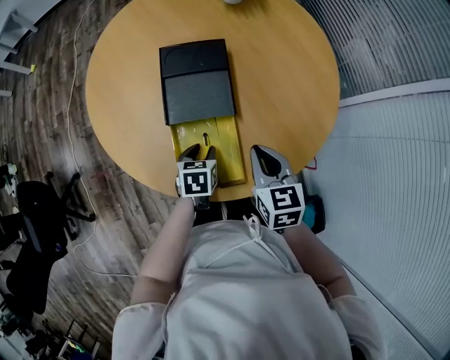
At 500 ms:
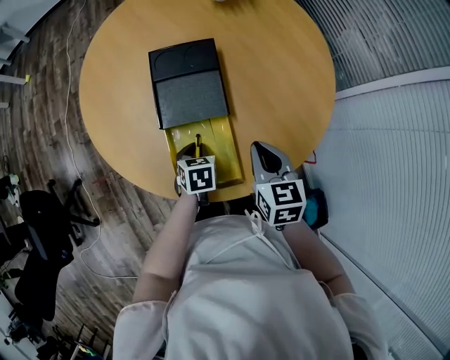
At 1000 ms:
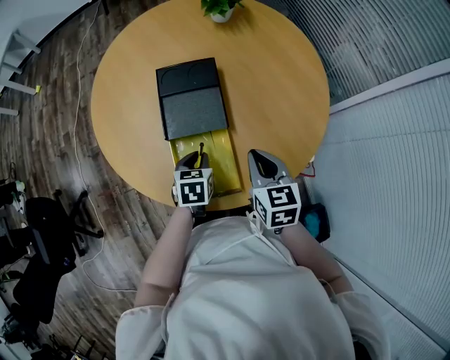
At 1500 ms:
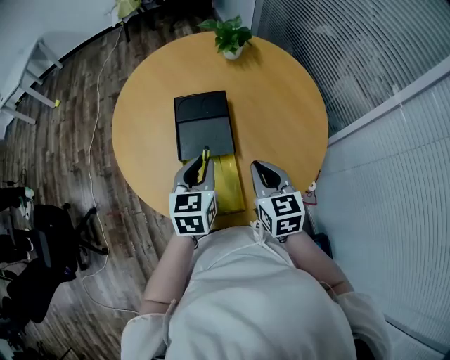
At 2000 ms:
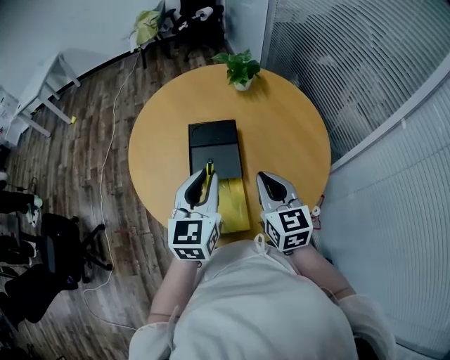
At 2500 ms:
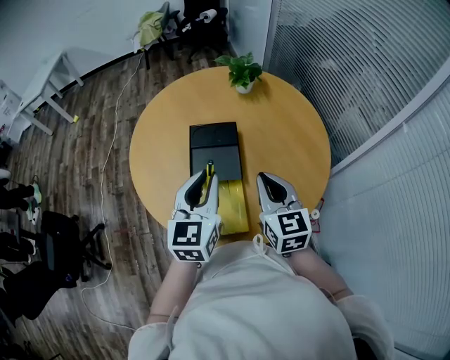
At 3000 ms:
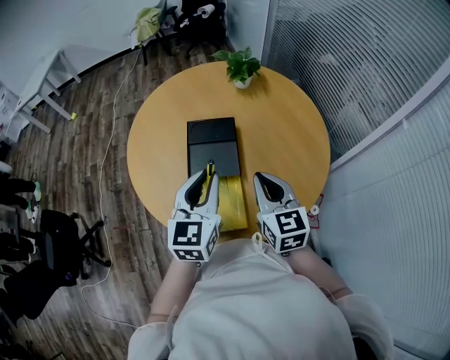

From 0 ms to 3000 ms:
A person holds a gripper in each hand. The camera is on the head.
From 0 ms to 1500 ms: The left gripper is displaced upward by roughly 25 cm, and changes its angle by about 30 degrees; the right gripper travels upward by some 10 cm.
From 1500 ms to 3000 ms: Both grippers travel together upward, roughly 10 cm.

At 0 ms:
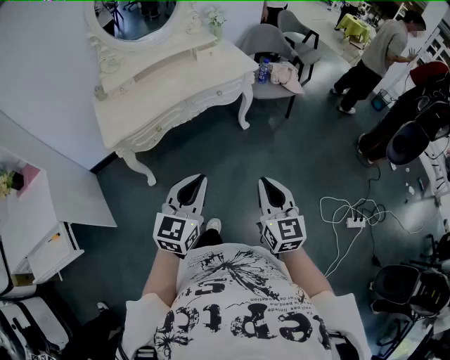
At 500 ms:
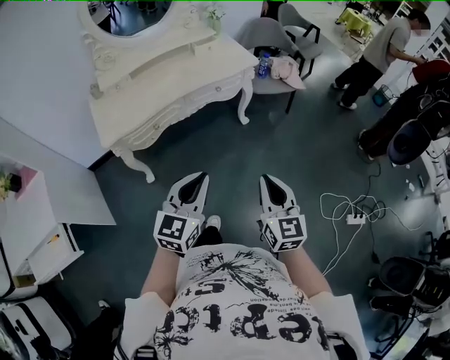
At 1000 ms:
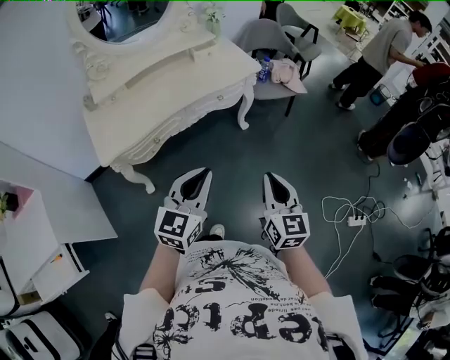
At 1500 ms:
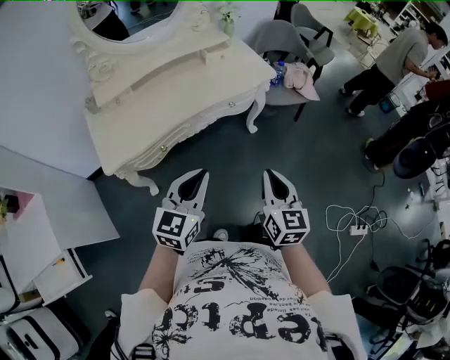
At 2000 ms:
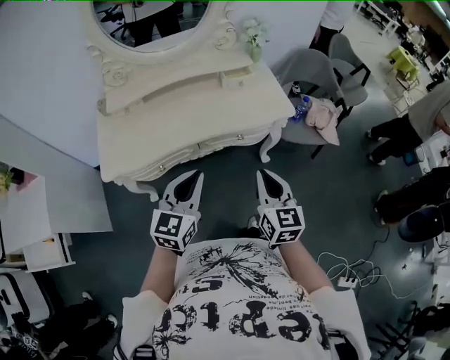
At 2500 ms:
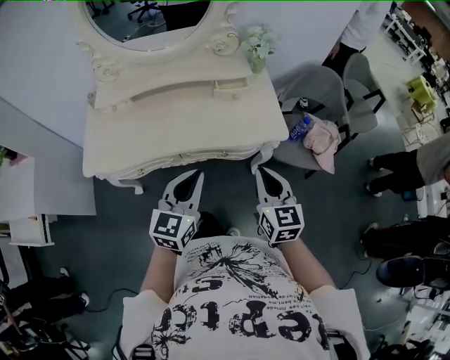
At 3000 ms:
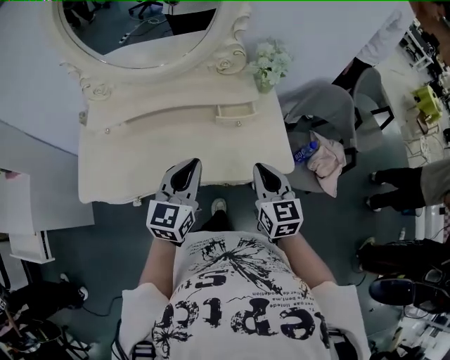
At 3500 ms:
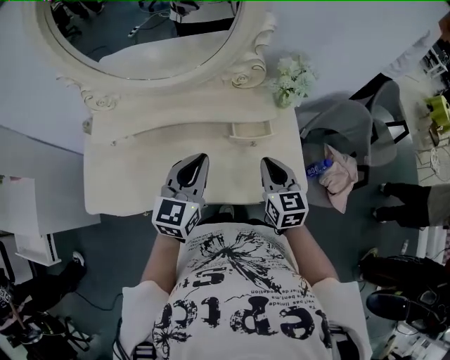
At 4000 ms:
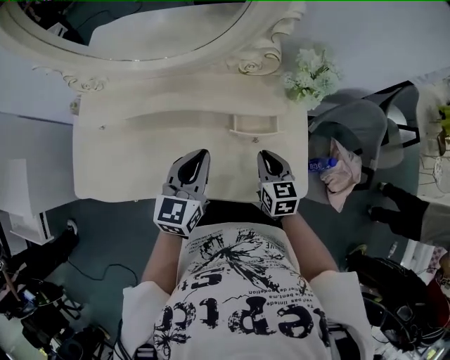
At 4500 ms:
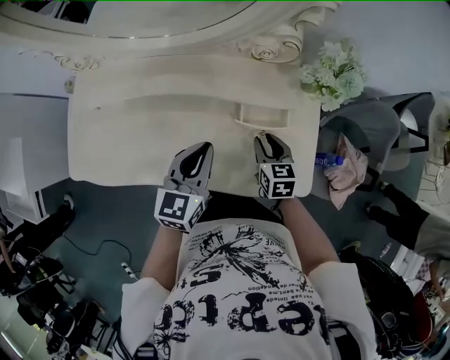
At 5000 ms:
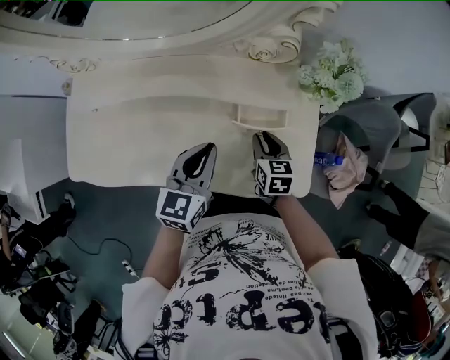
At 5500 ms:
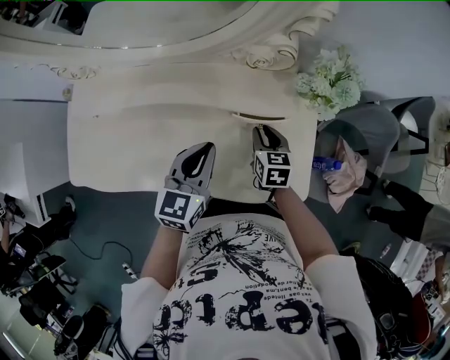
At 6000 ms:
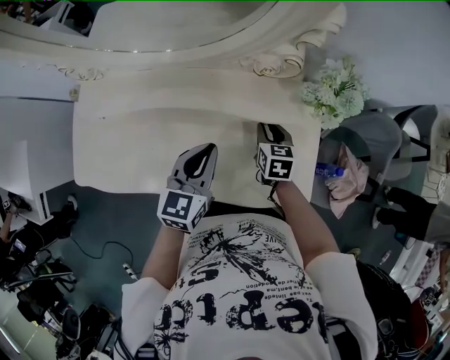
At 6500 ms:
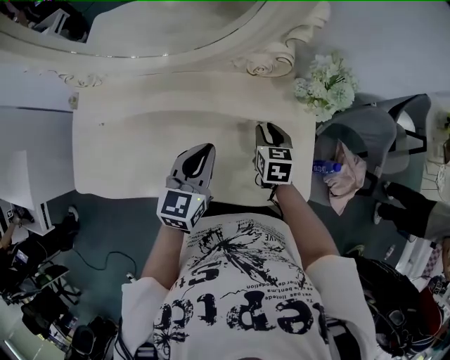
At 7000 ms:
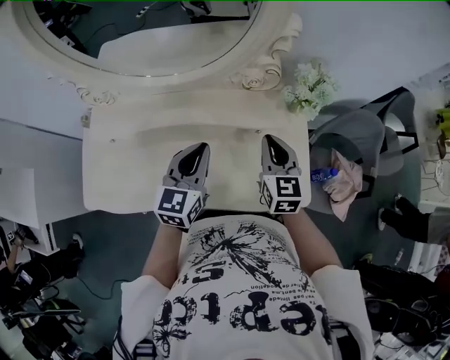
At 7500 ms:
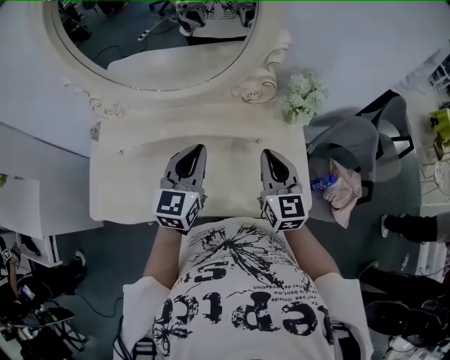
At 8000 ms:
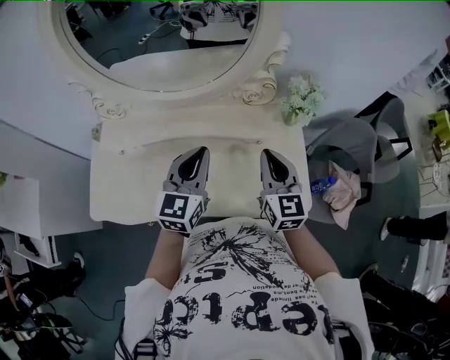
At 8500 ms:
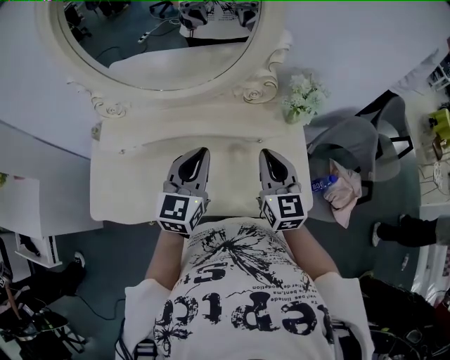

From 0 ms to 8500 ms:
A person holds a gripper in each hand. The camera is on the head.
From 0 ms to 2000 ms: The grippers both shift forward by some 35 cm.
From 2000 ms to 4000 ms: The pair of grippers is taken forward, about 40 cm. The left gripper rotates some 20 degrees, while the right gripper changes its angle by roughly 30 degrees.
From 4000 ms to 6500 ms: The right gripper is displaced forward by roughly 10 cm, and opens its fingers.
From 6500 ms to 8500 ms: The left gripper shifts roughly 10 cm upward. The right gripper heads upward and backward, covering approximately 25 cm, points its fingers approximately 30 degrees further upward, and closes up.

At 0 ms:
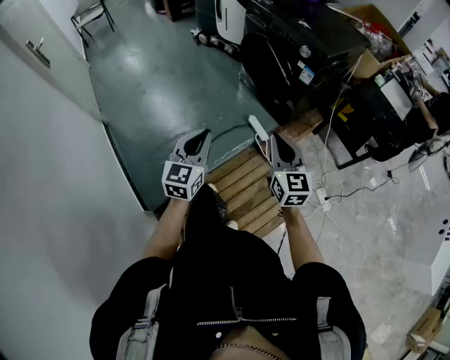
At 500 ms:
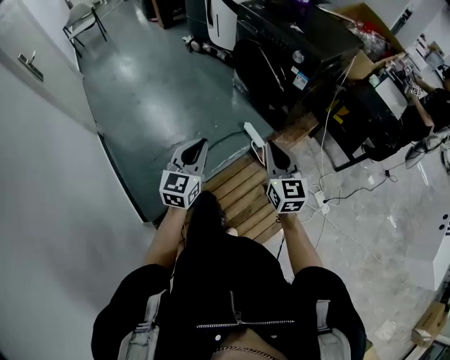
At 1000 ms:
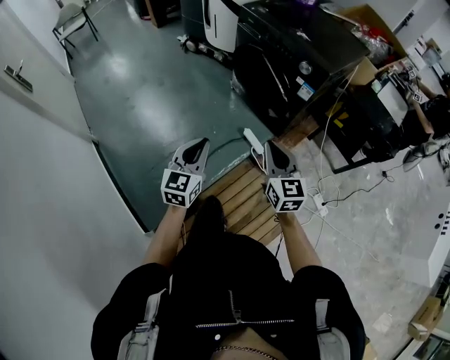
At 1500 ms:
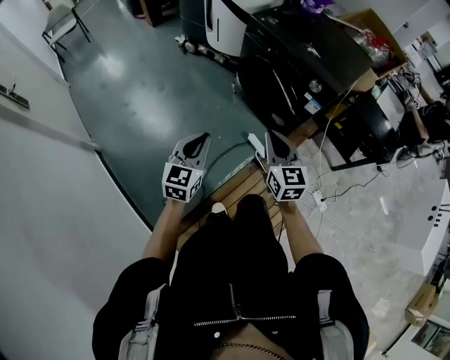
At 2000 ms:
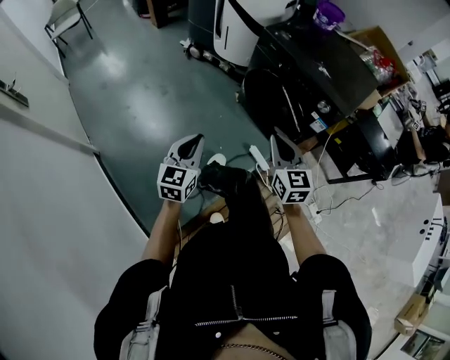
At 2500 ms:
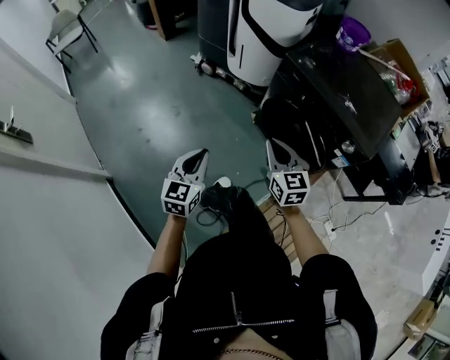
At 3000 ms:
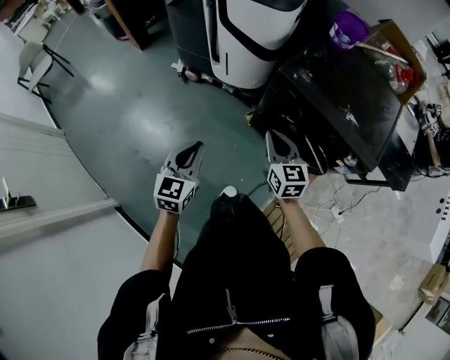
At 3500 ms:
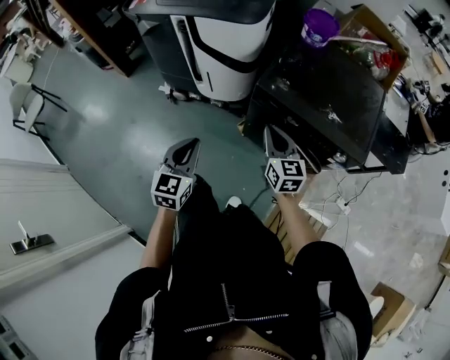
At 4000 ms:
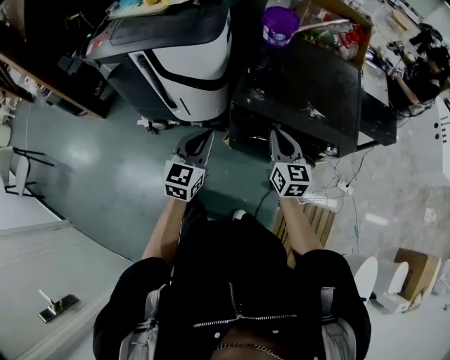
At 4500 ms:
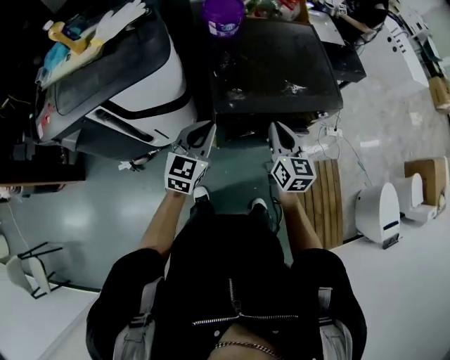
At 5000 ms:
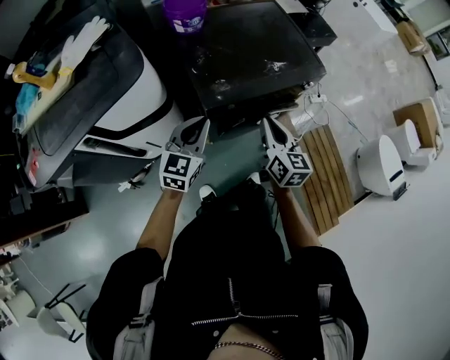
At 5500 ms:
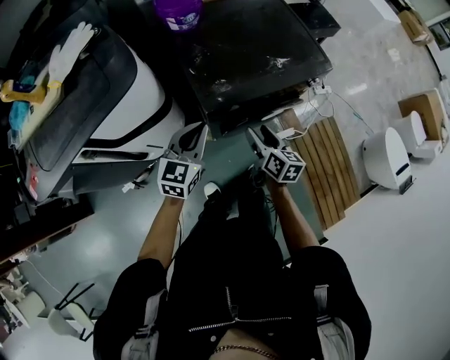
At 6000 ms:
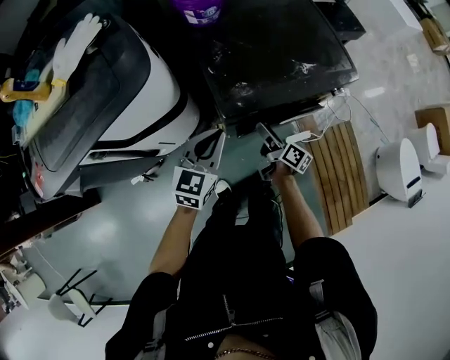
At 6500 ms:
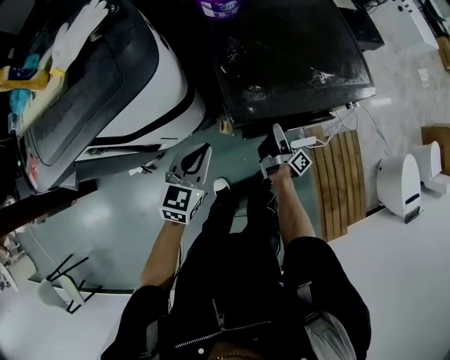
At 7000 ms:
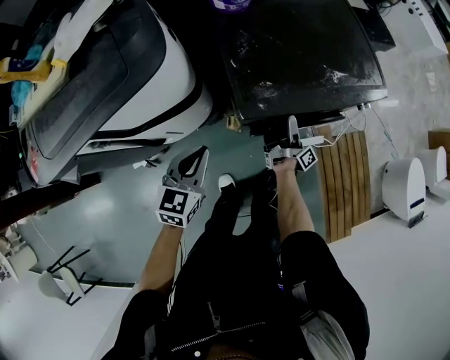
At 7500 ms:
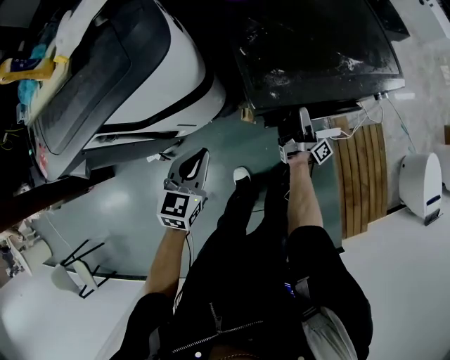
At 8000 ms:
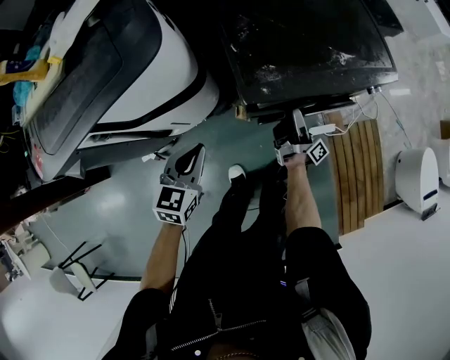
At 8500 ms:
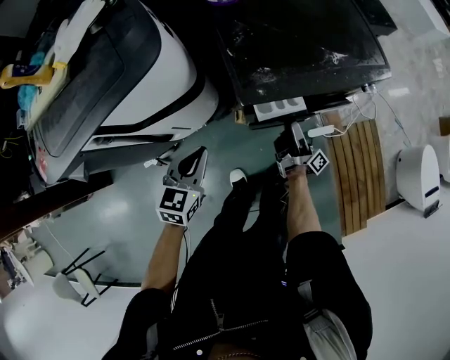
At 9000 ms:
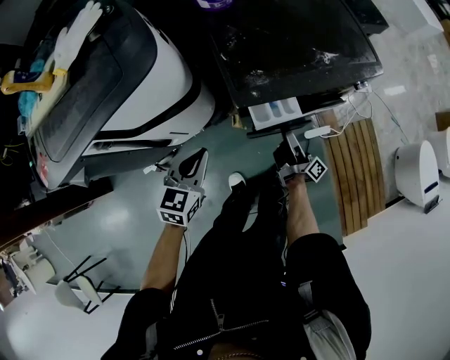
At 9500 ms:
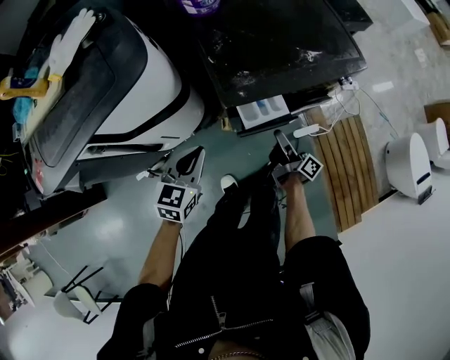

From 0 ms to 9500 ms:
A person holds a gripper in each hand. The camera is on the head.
From 0 ms to 2000 ms: Both grippers travel together forward and to the left, about 30 cm.
From 2000 ms to 4000 ms: The pair of grippers is taken some 50 cm. The right gripper changes its angle by about 40 degrees. Meanwhile the left gripper swivels approximately 40 degrees.
From 4000 ms to 5500 ms: The right gripper goes approximately 10 cm downward, rotates some 50 degrees, and opens up. The left gripper changes place by some 15 cm, and turns by approximately 40 degrees.
From 5500 ms to 7500 ms: The right gripper heads downward and forward, covering roughly 15 cm, and points its fingers some 40 degrees further upward; the left gripper is displaced to the left, downward and backward by some 15 cm.
From 7500 ms to 9500 ms: The right gripper is displaced backward by about 10 cm, swivels approximately 20 degrees, and closes.

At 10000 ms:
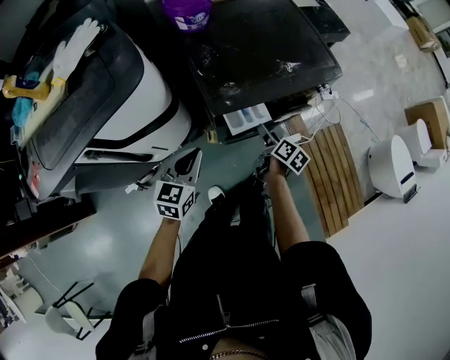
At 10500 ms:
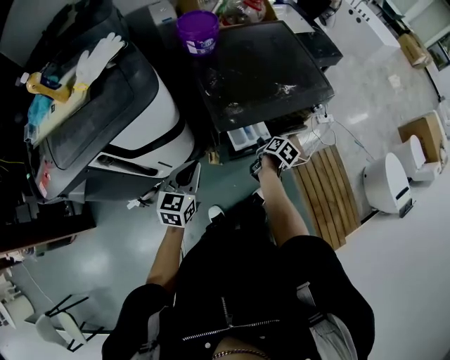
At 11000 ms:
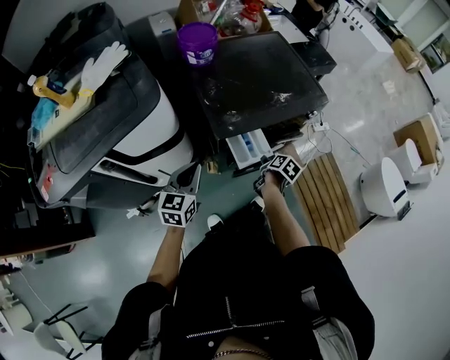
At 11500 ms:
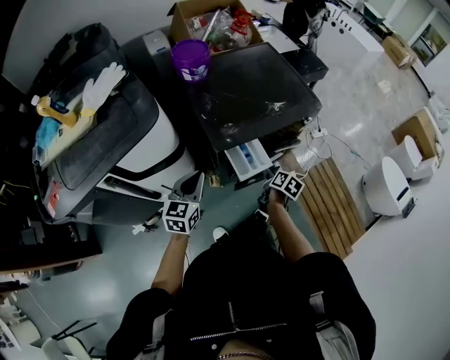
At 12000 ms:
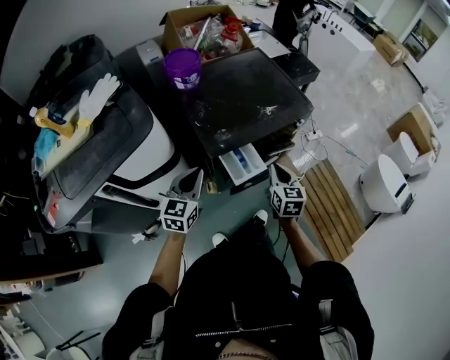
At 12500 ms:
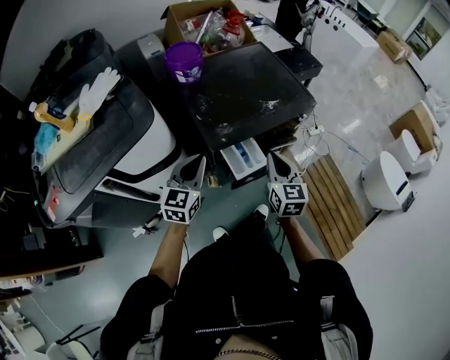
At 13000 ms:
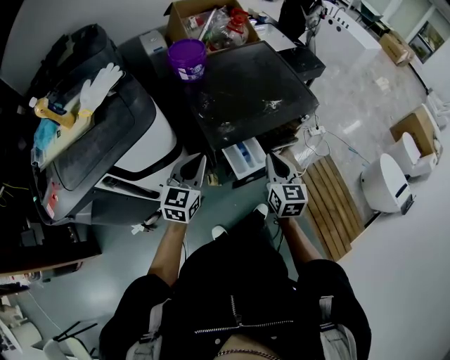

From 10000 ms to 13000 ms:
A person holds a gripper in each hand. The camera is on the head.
From 10000 ms to 11500 ms: The right gripper shifts by some 5 cm, and closes its fingers.
From 11500 ms to 13000 ms: The right gripper goes roughly 20 cm upward, and twists some 50 degrees counterclockwise, seen from behind. The left gripper moves upward, roughly 5 cm.

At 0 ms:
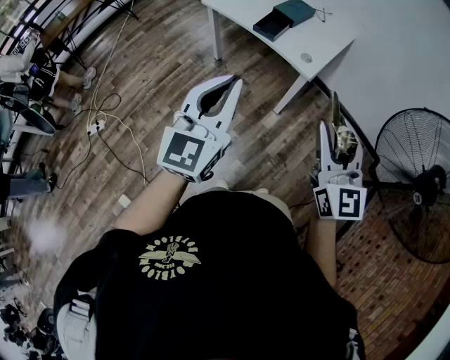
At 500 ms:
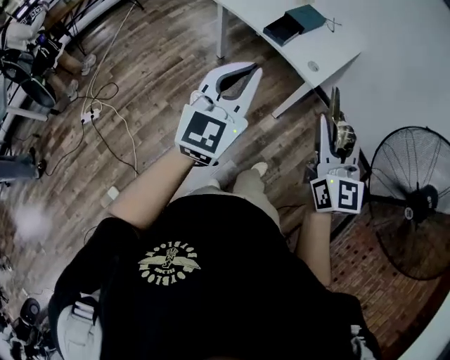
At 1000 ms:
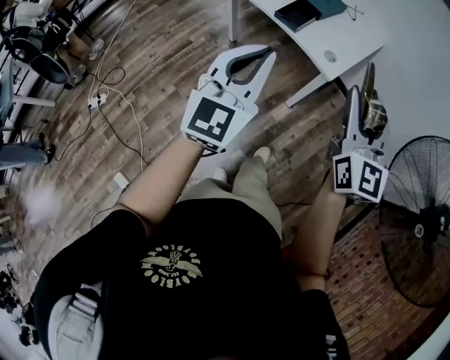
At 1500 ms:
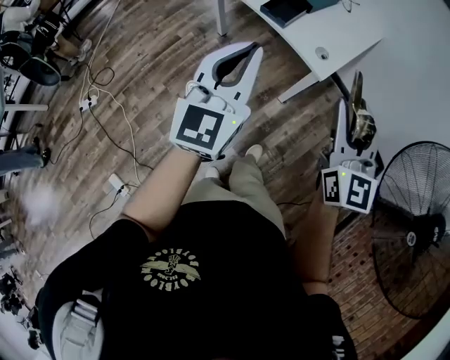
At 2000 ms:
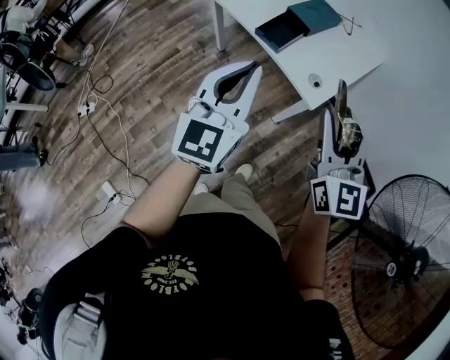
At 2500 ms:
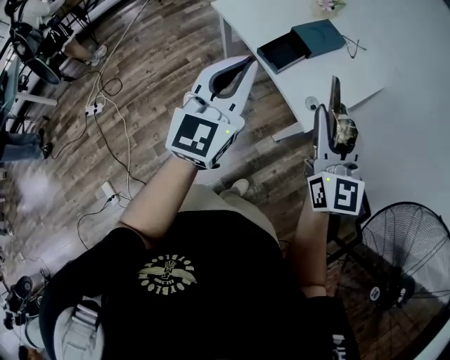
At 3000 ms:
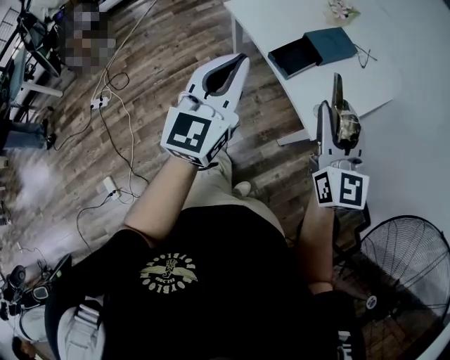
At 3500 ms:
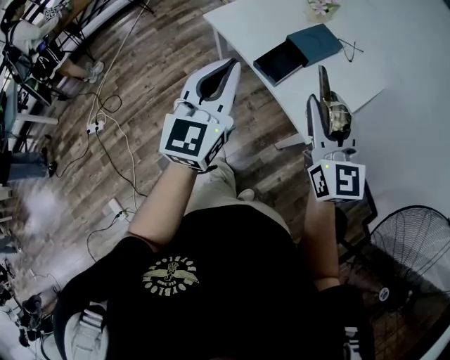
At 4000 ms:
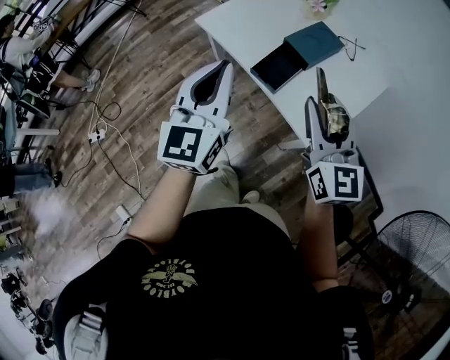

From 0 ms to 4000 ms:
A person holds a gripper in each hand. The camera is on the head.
From 0 ms to 2000 ms: Both grippers travel together forward, some 30 cm.
From 2000 ms to 4000 ms: The two grippers go about 20 cm forward.
